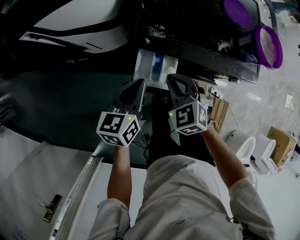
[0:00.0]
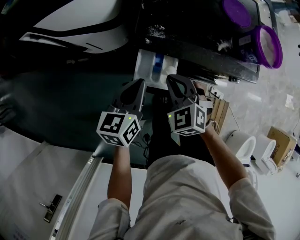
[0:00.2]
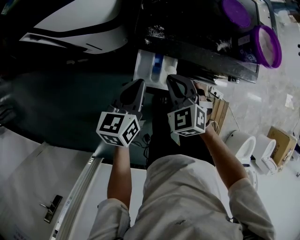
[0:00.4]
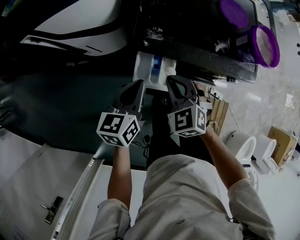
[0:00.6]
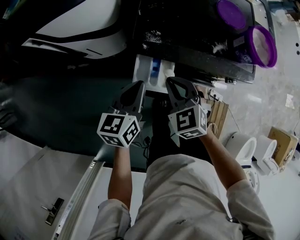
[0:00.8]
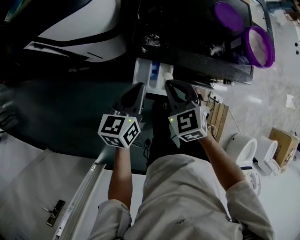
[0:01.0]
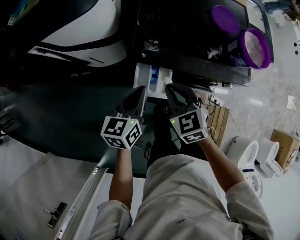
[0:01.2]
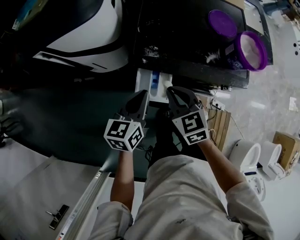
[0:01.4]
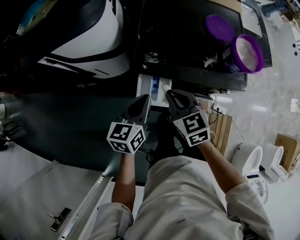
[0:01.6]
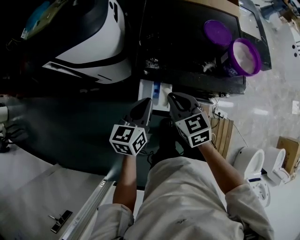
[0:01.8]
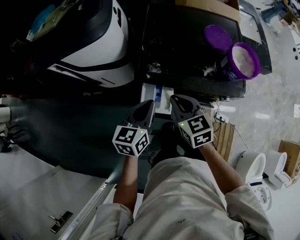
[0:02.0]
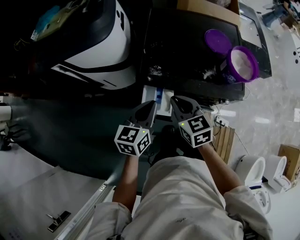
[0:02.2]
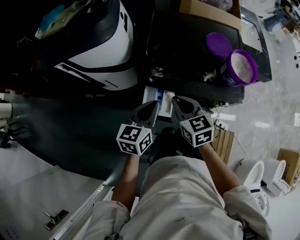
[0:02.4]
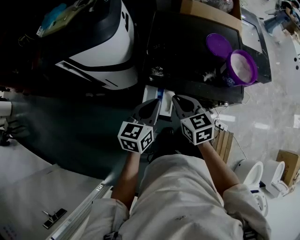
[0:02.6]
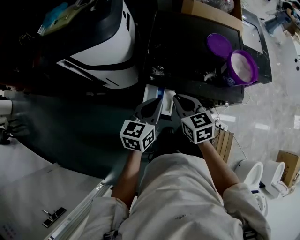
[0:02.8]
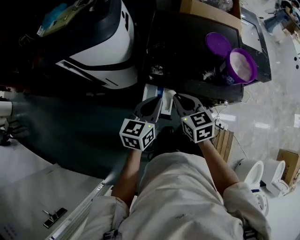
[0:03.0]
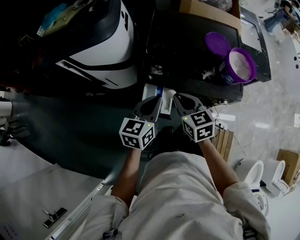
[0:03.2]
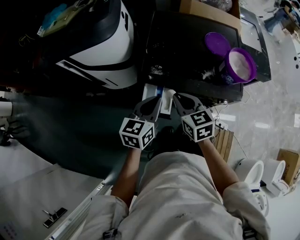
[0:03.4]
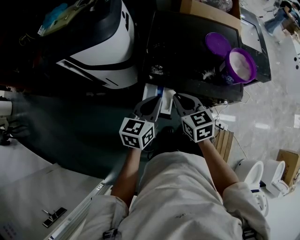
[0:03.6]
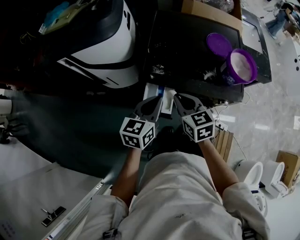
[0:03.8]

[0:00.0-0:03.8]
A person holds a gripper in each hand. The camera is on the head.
0:00.0 to 0:01.2: The grippers move only a little.
0:01.2 to 0:02.6: The grippers both shift upward by approximately 5 cm.
0:02.6 to 0:03.8: Neither gripper changes place.

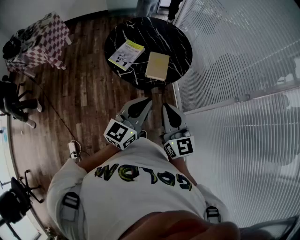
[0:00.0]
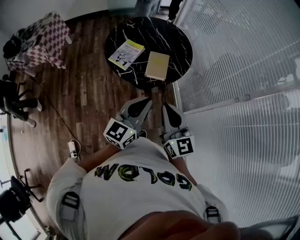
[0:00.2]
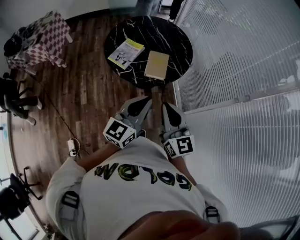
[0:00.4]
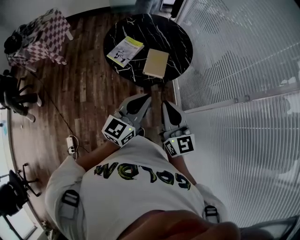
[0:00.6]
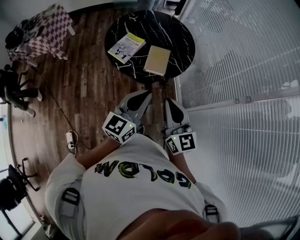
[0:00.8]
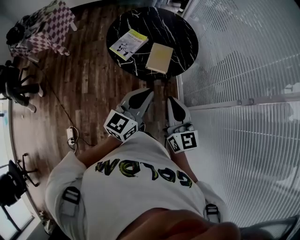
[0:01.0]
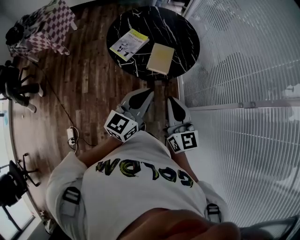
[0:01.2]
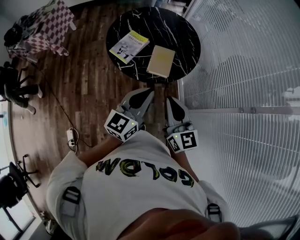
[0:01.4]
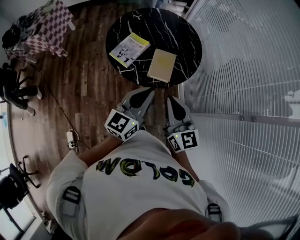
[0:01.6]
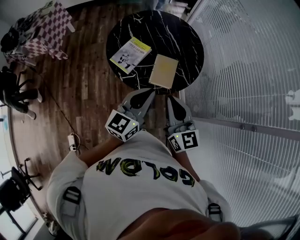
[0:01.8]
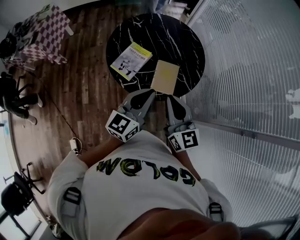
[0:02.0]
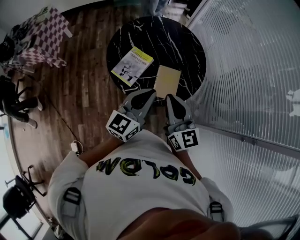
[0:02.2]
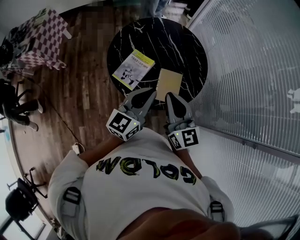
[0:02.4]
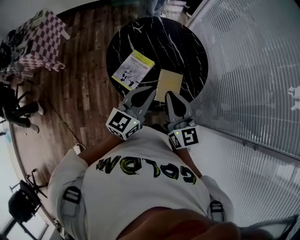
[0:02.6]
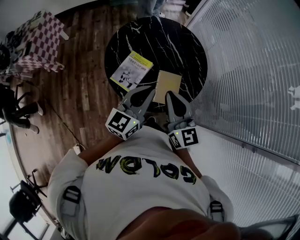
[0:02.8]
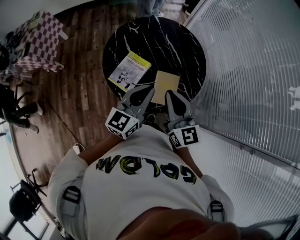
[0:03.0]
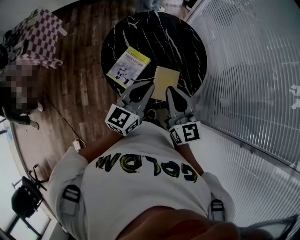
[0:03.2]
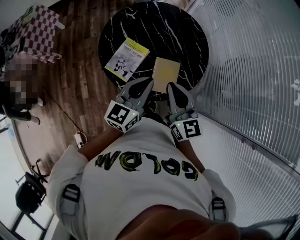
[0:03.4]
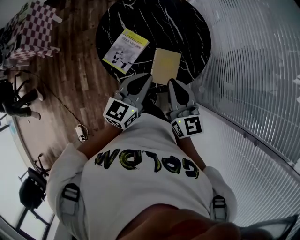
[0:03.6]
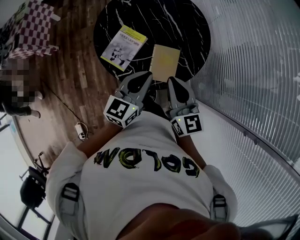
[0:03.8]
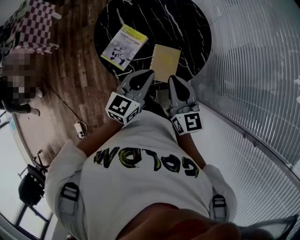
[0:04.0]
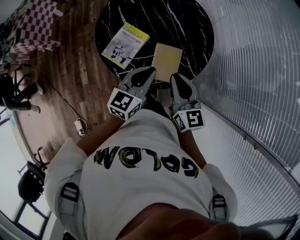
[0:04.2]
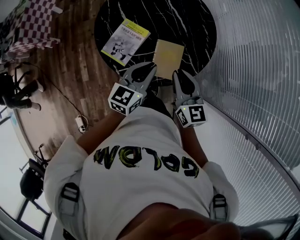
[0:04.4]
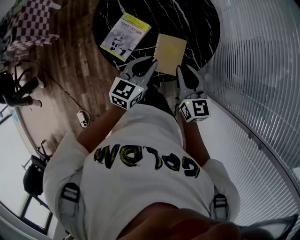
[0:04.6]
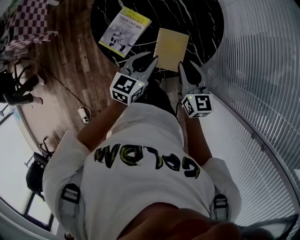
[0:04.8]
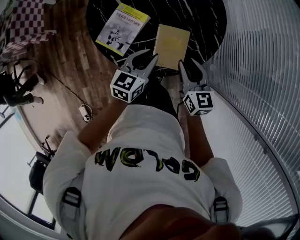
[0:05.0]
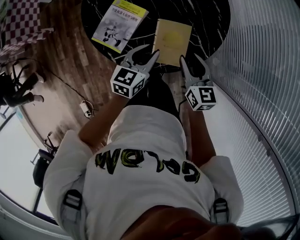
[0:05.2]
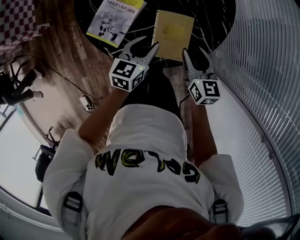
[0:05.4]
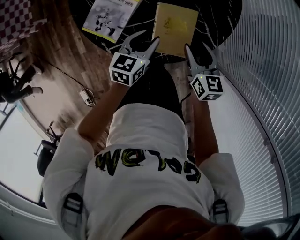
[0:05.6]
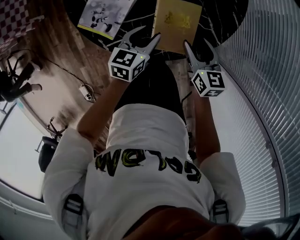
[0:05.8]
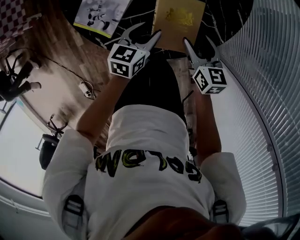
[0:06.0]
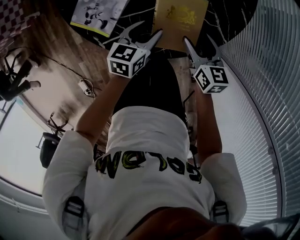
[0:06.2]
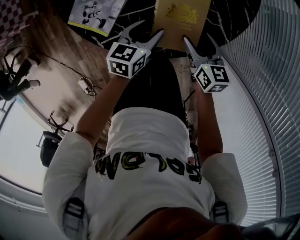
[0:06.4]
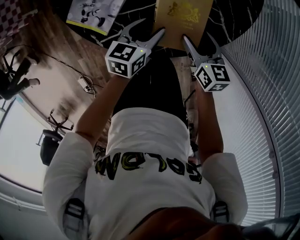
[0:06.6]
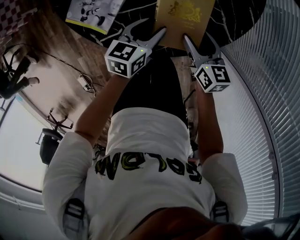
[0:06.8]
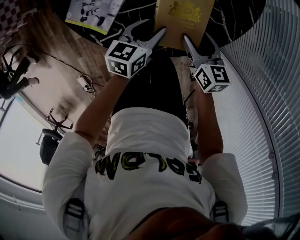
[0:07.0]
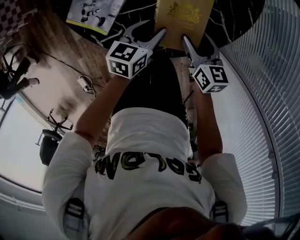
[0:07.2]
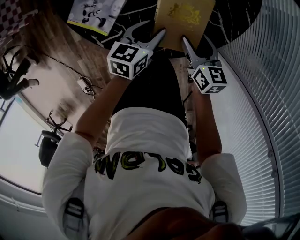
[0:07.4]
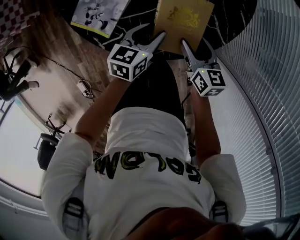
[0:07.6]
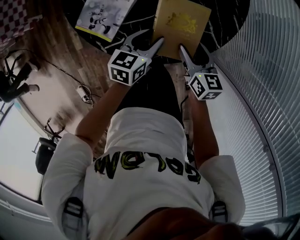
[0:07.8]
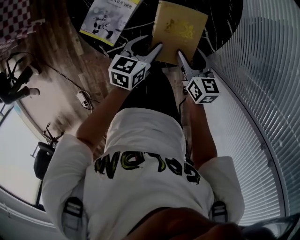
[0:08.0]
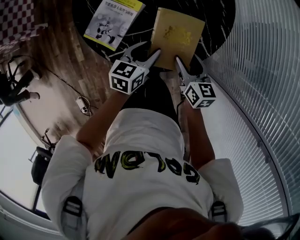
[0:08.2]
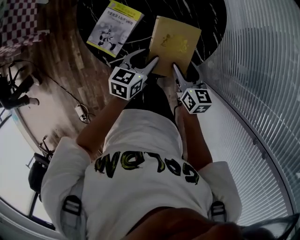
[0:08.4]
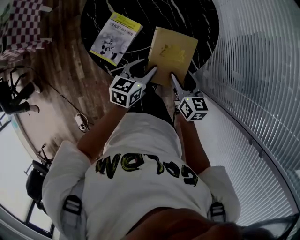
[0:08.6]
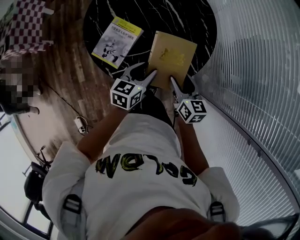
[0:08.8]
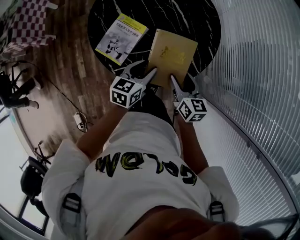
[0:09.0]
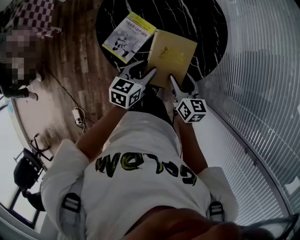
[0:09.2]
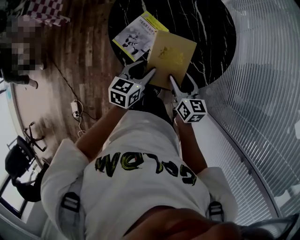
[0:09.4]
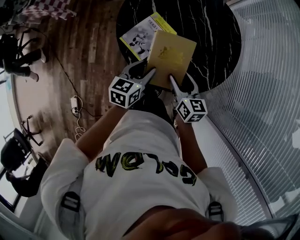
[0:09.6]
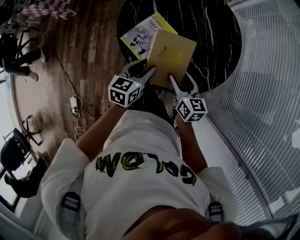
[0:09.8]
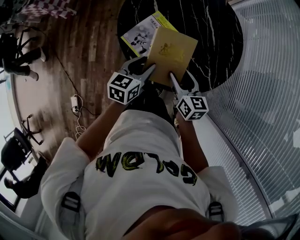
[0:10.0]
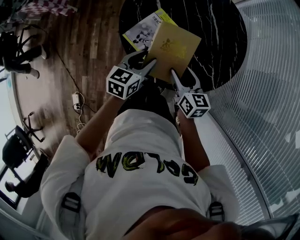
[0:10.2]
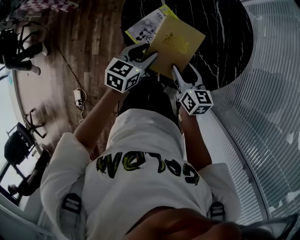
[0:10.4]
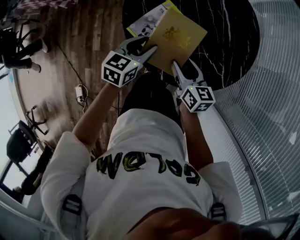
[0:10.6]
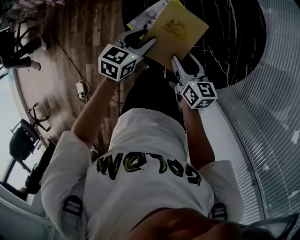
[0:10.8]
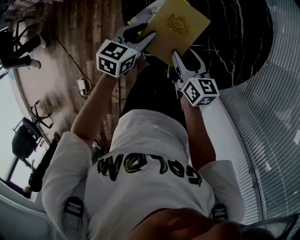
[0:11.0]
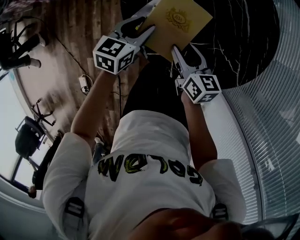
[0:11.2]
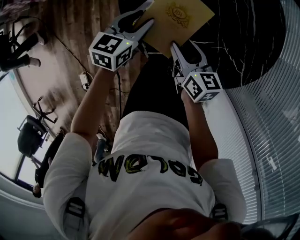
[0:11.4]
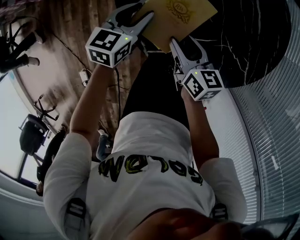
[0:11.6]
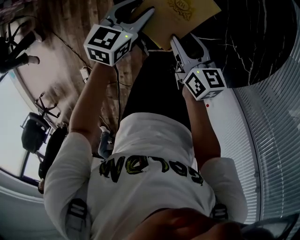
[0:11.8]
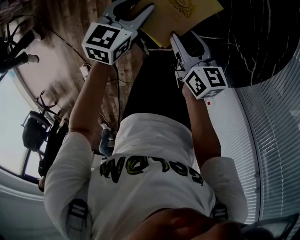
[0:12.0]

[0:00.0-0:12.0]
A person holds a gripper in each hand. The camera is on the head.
0:00.0 to 0:01.6: Both grippers travel together forward, approximately 10 cm.
0:01.6 to 0:03.0: Both grippers travel together forward, about 20 cm.
0:03.0 to 0:04.4: The left gripper is displaced downward by approximately 10 cm. The right gripper travels downward and to the right by about 15 cm.
0:04.4 to 0:06.0: Both grippers travel together downward, roughly 25 cm. The left gripper rotates approximately 20 degrees, and opens up; the right gripper rotates some 30 degrees, and opens up.
0:06.0 to 0:07.6: There are only small adjustments of the grippers.
0:07.6 to 0:09.0: Both grippers move upward, some 15 cm.
0:09.0 to 0:10.4: Both grippers move to the left, roughly 15 cm.
0:10.4 to 0:12.0: The right gripper moves downward, to the left and forward, approximately 15 cm; the left gripper travels downward, forward and to the left by about 20 cm.

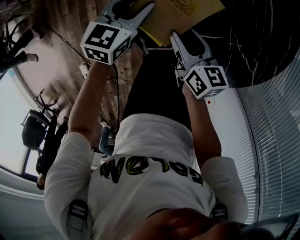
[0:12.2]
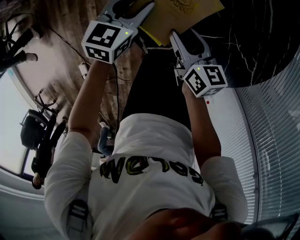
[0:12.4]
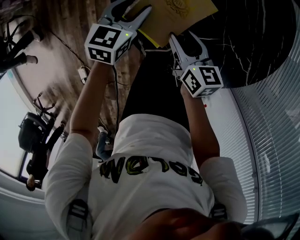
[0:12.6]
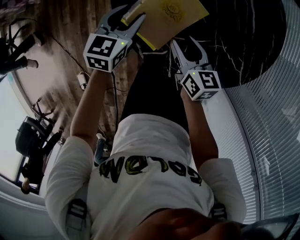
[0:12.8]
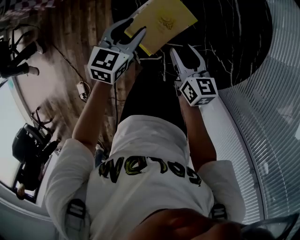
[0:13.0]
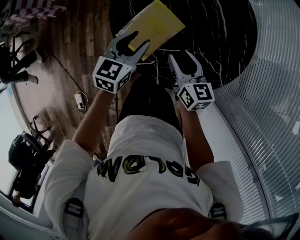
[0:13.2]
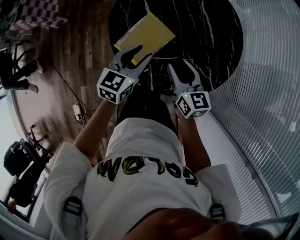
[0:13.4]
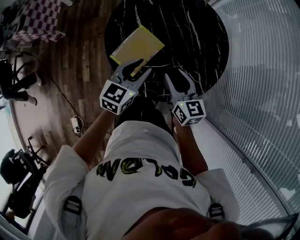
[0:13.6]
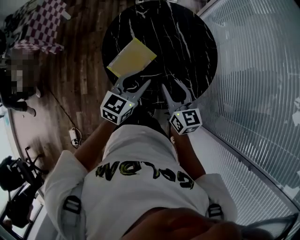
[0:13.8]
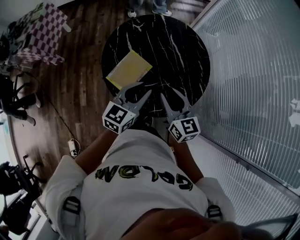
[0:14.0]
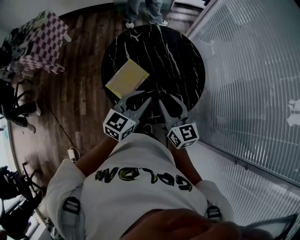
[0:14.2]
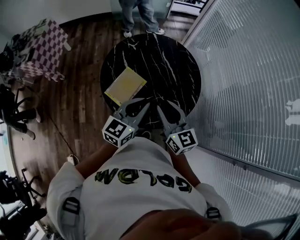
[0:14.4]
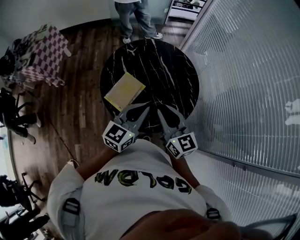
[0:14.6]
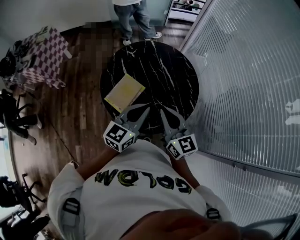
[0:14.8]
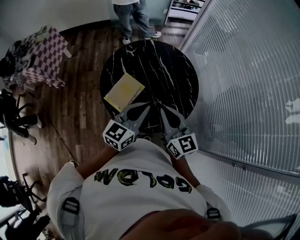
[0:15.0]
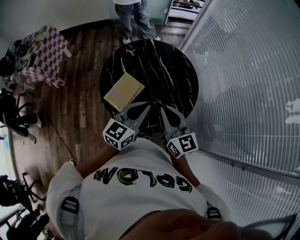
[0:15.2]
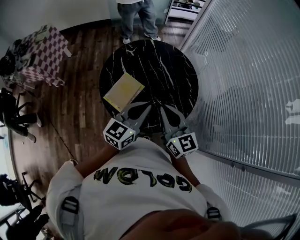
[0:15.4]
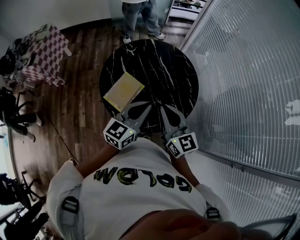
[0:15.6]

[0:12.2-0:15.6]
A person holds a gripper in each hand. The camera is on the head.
0:12.2 to 0:13.8: The left gripper travels upward, to the right and backward by roughly 30 cm, while the right gripper moves upward and to the right, some 30 cm, and turns by approximately 30 degrees.
0:13.8 to 0:15.6: The right gripper travels upward by approximately 15 cm, and closes its fingers; the left gripper moves upward and to the right, approximately 15 cm, and closes up.

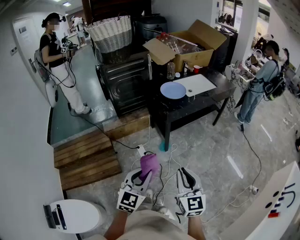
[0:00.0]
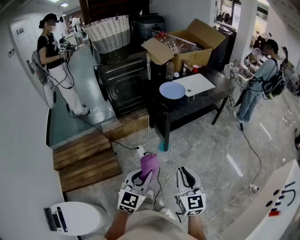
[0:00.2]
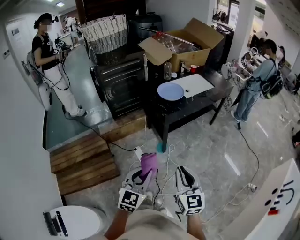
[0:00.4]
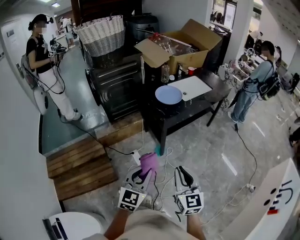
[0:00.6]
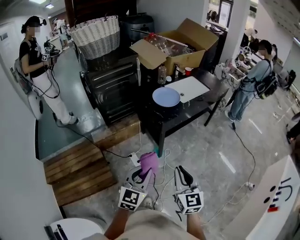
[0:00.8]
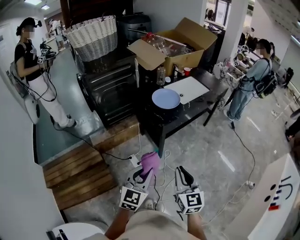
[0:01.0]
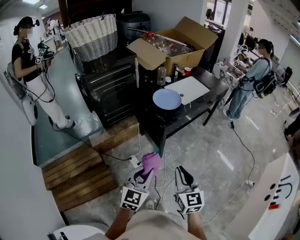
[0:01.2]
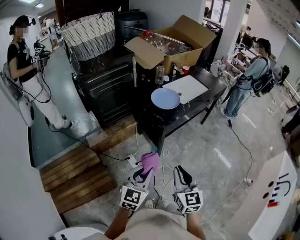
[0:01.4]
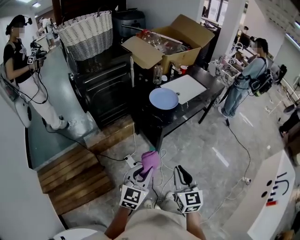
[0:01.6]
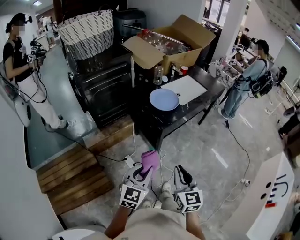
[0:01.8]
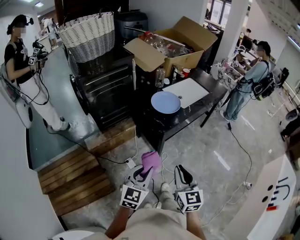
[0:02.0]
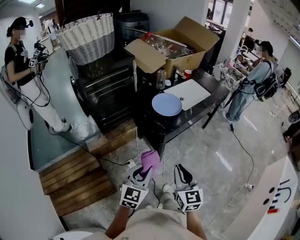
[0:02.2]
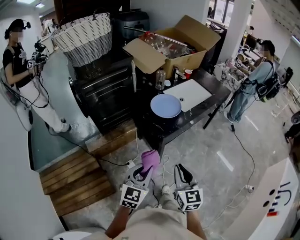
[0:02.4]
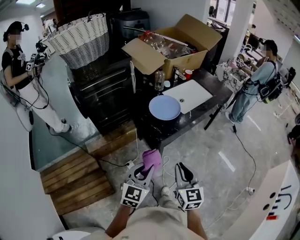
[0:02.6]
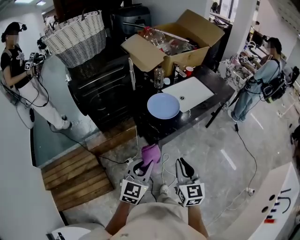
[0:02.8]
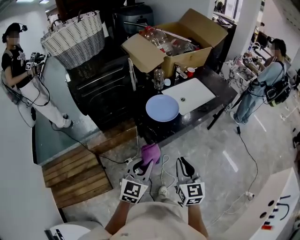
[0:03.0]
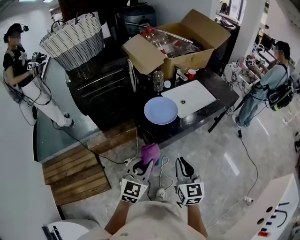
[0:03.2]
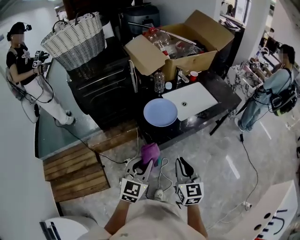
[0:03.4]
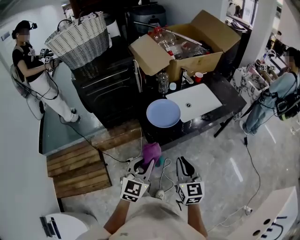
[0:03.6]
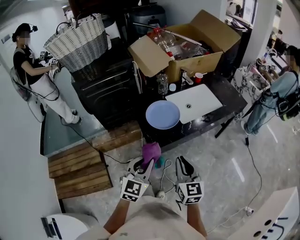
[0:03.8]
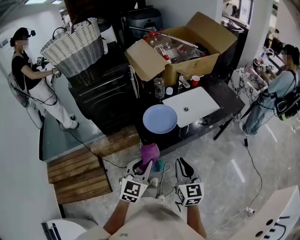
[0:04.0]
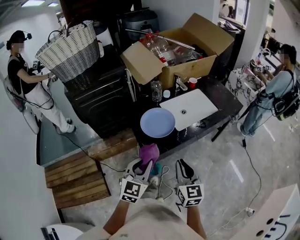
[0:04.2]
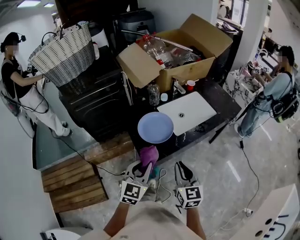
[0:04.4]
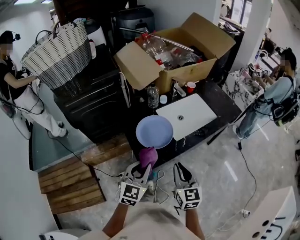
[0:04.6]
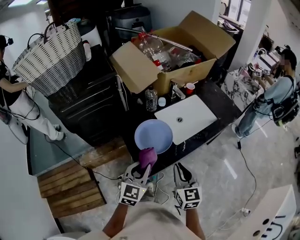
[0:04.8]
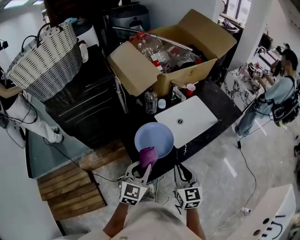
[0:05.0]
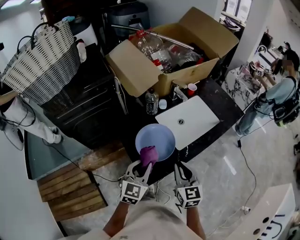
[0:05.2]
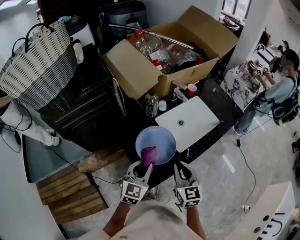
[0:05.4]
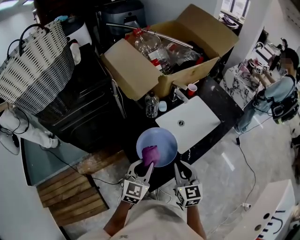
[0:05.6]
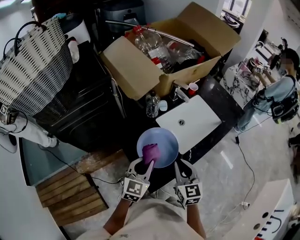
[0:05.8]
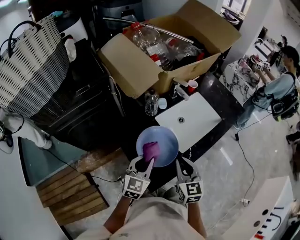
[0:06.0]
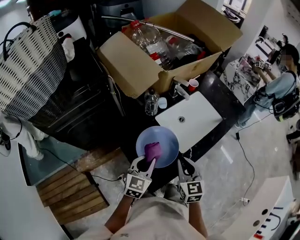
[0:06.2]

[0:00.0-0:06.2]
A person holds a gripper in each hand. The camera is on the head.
0:00.0 to 0:01.6: The two grippers go about 20 cm forward and to the left.
0:01.6 to 0:03.2: The two grippers go roughly 25 cm forward and to the right.
0:03.2 to 0:04.6: Both grippers move forward, approximately 15 cm.
0:04.6 to 0:06.2: Both grippers move forward, some 20 cm.
